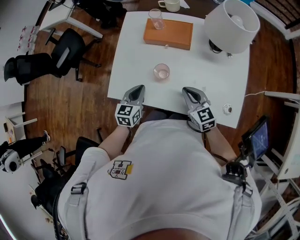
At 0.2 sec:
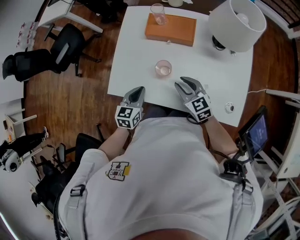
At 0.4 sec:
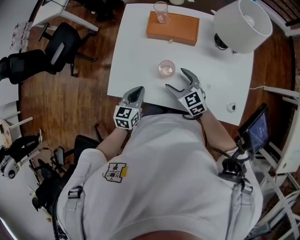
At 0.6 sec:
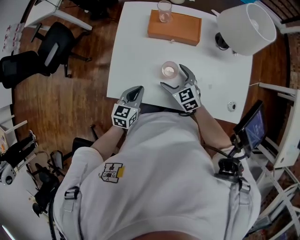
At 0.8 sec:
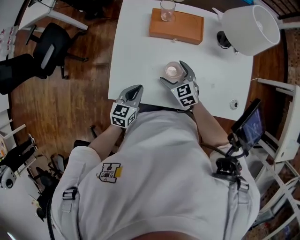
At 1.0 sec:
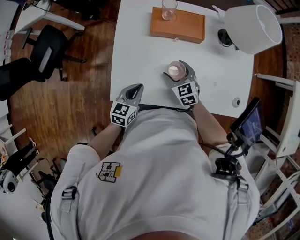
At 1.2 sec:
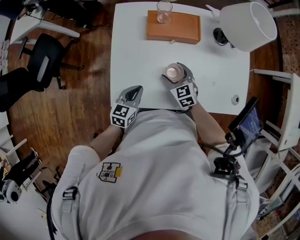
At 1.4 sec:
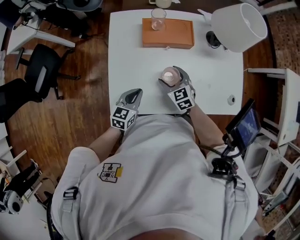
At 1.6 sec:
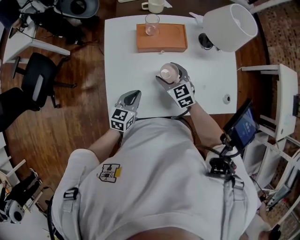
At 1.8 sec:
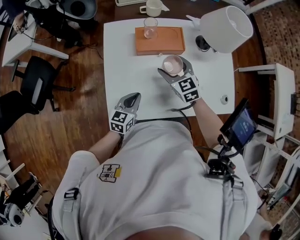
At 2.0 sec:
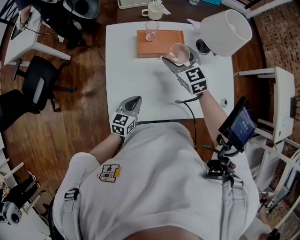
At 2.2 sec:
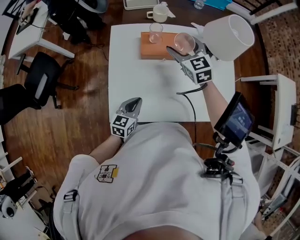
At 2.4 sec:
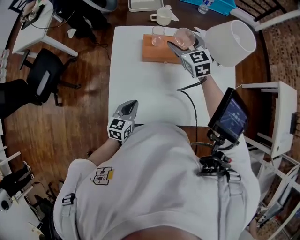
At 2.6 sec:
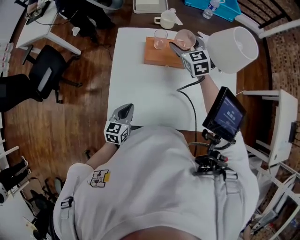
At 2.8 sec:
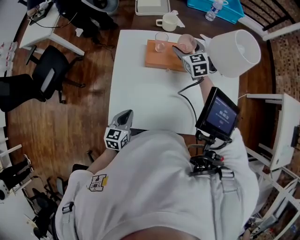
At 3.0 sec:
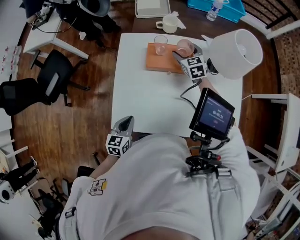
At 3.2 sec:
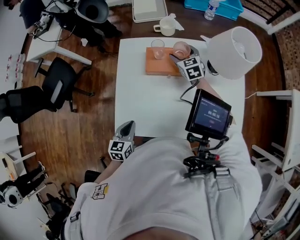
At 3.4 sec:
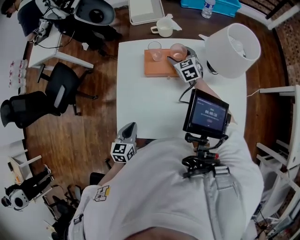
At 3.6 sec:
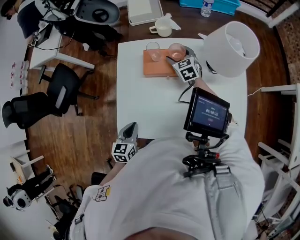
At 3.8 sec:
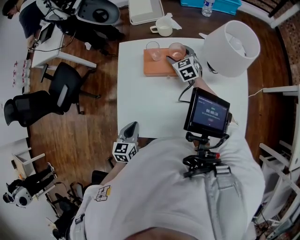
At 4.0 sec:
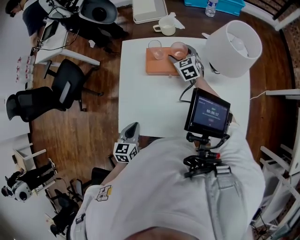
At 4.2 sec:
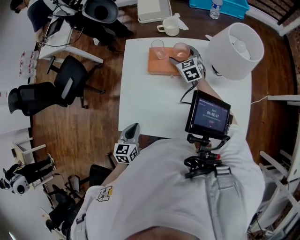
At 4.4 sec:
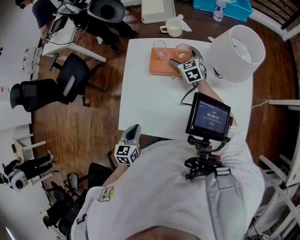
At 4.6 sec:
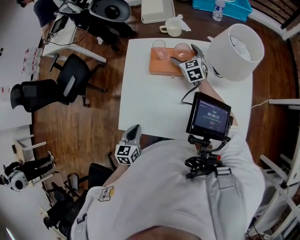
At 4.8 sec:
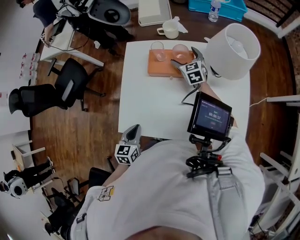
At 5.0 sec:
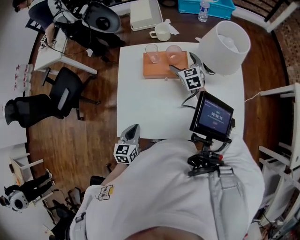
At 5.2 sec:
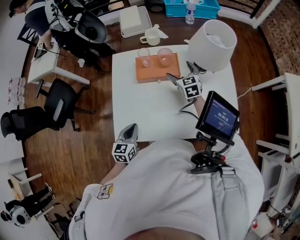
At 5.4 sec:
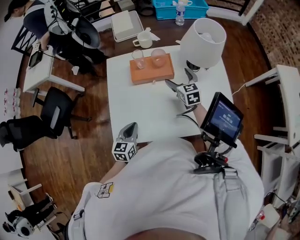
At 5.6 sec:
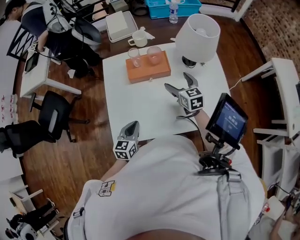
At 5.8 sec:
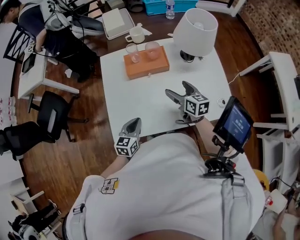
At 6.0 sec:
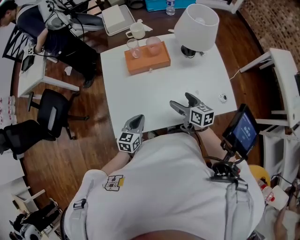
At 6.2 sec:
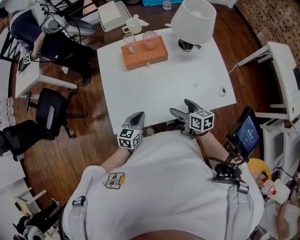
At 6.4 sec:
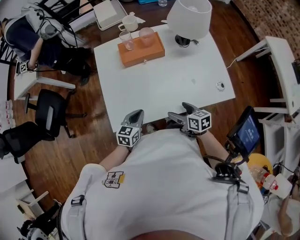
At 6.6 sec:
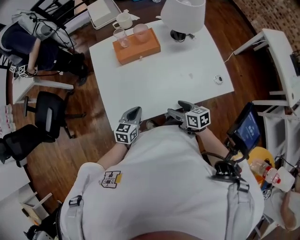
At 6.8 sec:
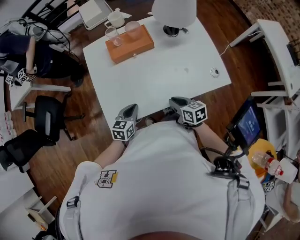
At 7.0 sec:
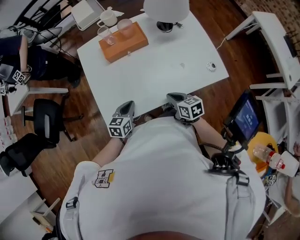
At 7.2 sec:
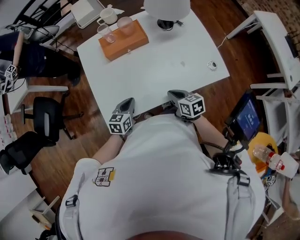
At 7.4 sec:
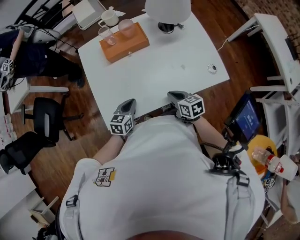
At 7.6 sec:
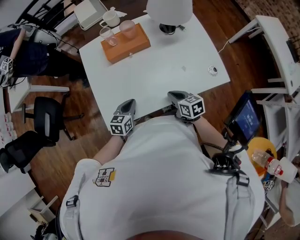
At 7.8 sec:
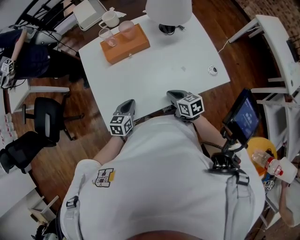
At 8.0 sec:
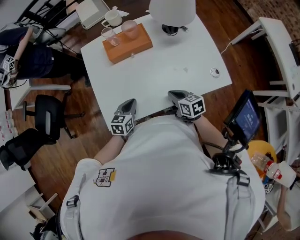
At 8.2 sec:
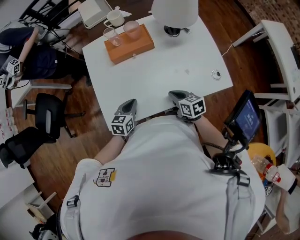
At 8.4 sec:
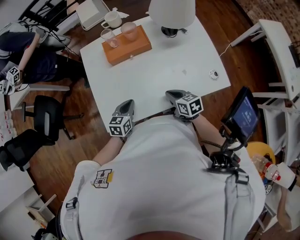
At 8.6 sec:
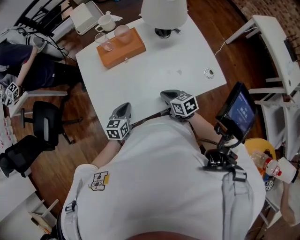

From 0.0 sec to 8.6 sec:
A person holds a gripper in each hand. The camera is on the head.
From 0.0 sec to 1.4 sec: The left gripper travels to the left by some 5 cm, and changes its angle by some 20 degrees; the right gripper heads to the left, forward and downward, covering about 15 cm, turns by approximately 20 degrees, and opens up.
From 1.4 sec to 2.8 sec: The right gripper goes some 25 cm forward and upward.
From 2.8 sec to 4.4 sec: The right gripper shifts about 5 cm downward.
From 4.4 sec to 5.8 sec: The right gripper travels backward by some 25 cm, and turns by some 40 degrees. The left gripper turns by about 30 degrees.
From 5.8 sec to 7.2 sec: The right gripper is displaced backward and downward by roughly 20 cm, and closes up.
From 7.2 sec to 8.6 sec: The grippers make only small movements.

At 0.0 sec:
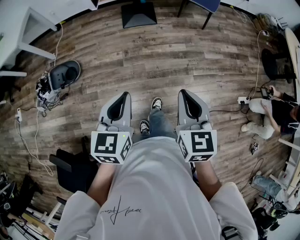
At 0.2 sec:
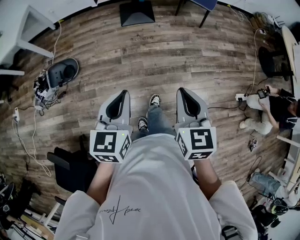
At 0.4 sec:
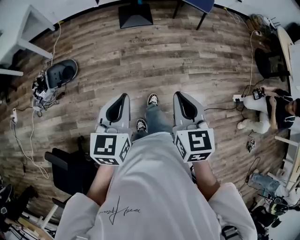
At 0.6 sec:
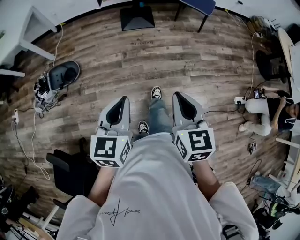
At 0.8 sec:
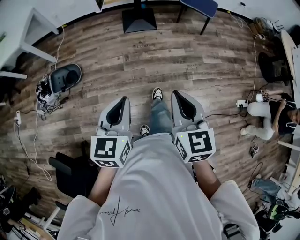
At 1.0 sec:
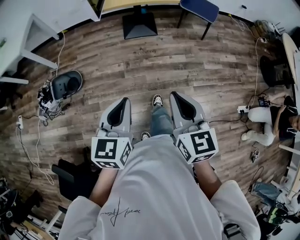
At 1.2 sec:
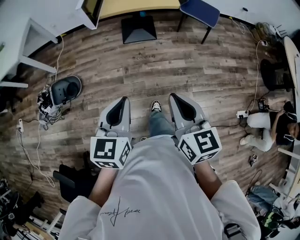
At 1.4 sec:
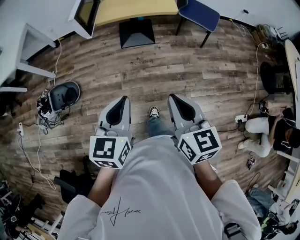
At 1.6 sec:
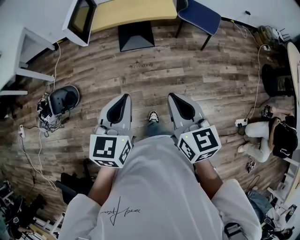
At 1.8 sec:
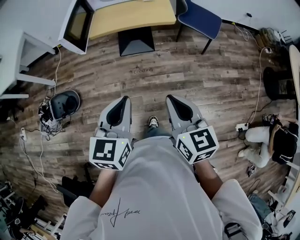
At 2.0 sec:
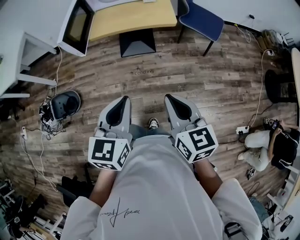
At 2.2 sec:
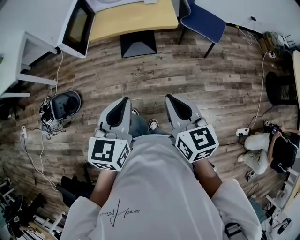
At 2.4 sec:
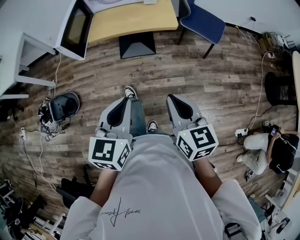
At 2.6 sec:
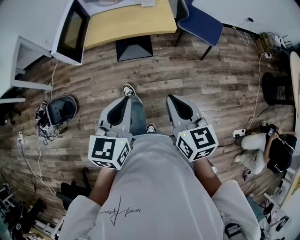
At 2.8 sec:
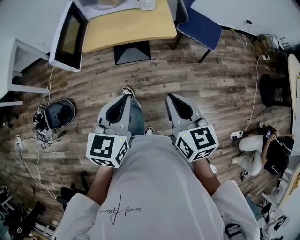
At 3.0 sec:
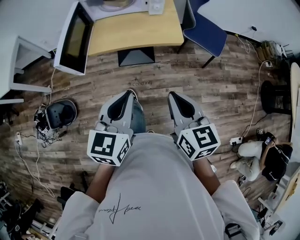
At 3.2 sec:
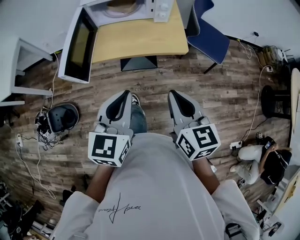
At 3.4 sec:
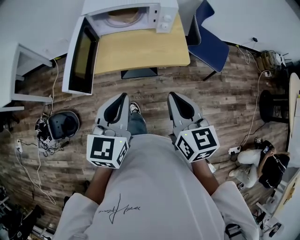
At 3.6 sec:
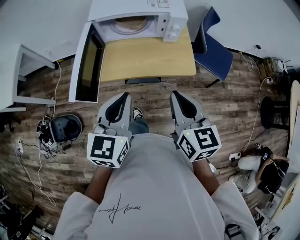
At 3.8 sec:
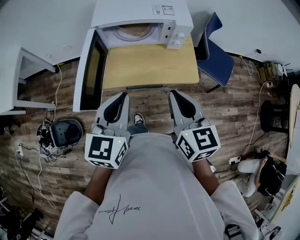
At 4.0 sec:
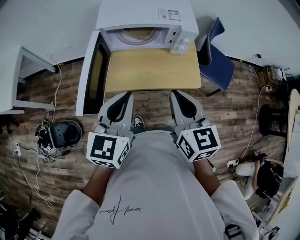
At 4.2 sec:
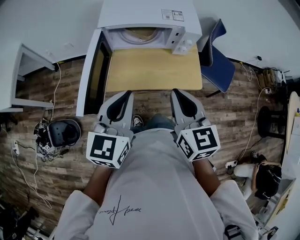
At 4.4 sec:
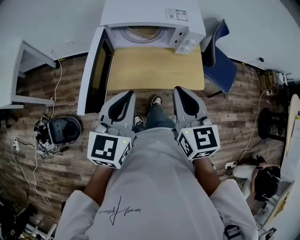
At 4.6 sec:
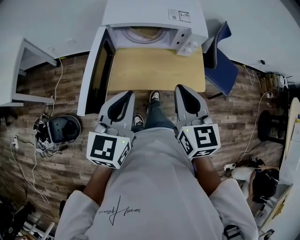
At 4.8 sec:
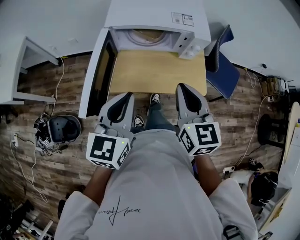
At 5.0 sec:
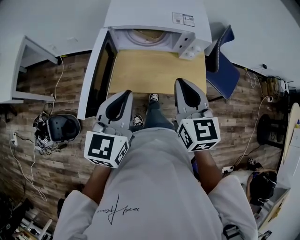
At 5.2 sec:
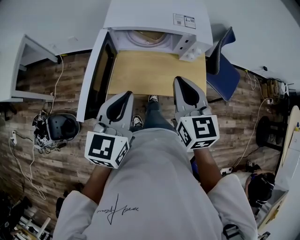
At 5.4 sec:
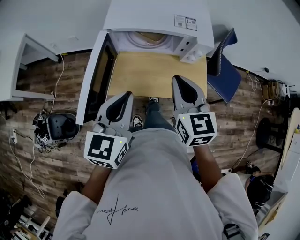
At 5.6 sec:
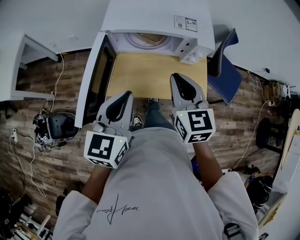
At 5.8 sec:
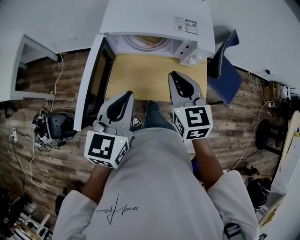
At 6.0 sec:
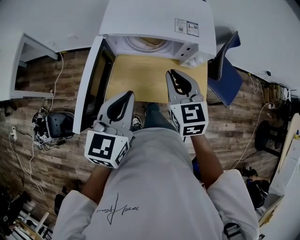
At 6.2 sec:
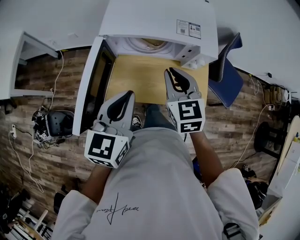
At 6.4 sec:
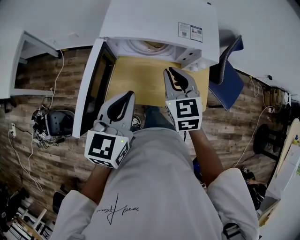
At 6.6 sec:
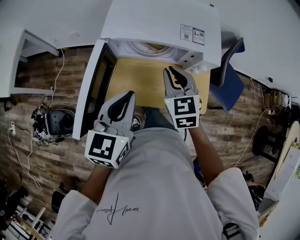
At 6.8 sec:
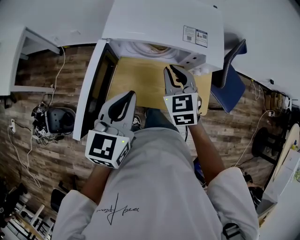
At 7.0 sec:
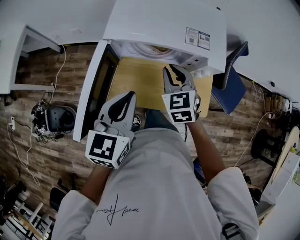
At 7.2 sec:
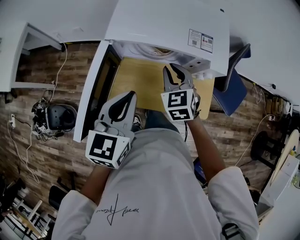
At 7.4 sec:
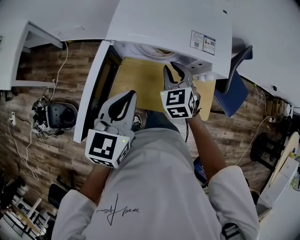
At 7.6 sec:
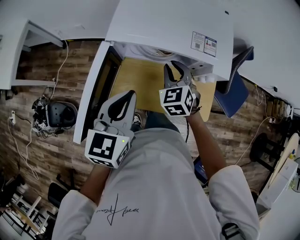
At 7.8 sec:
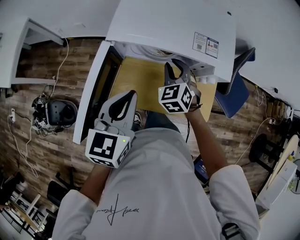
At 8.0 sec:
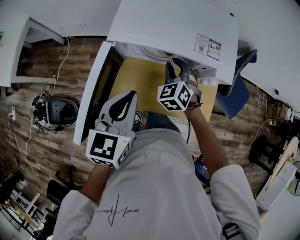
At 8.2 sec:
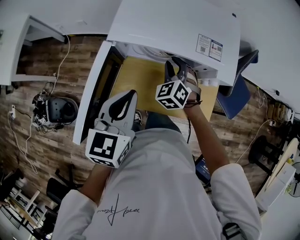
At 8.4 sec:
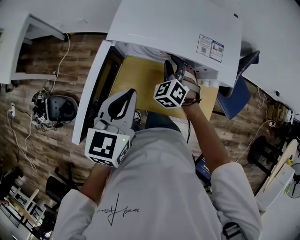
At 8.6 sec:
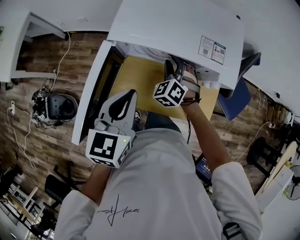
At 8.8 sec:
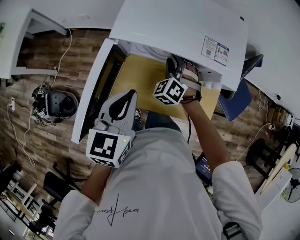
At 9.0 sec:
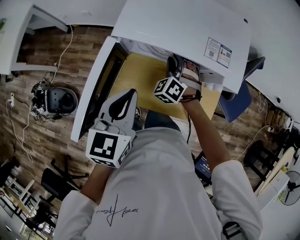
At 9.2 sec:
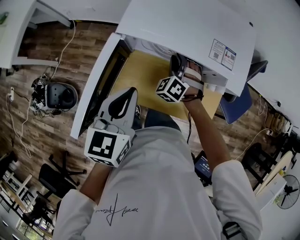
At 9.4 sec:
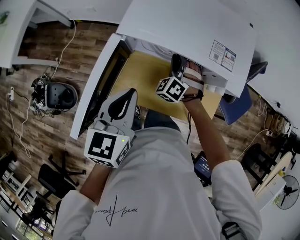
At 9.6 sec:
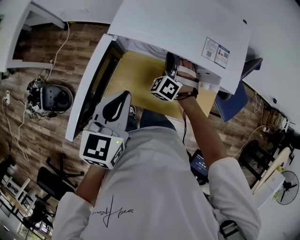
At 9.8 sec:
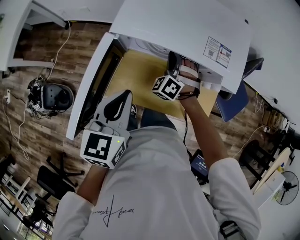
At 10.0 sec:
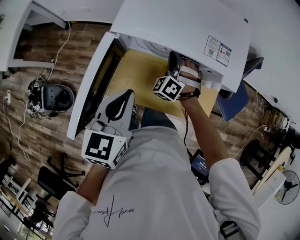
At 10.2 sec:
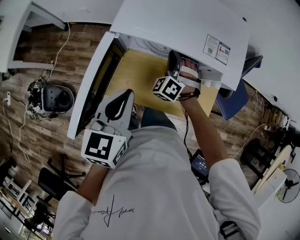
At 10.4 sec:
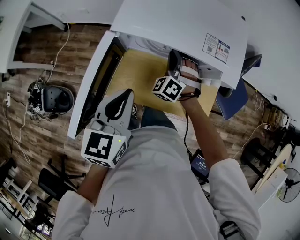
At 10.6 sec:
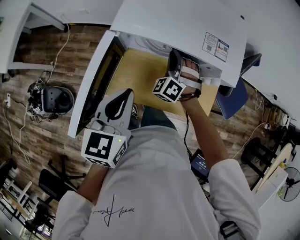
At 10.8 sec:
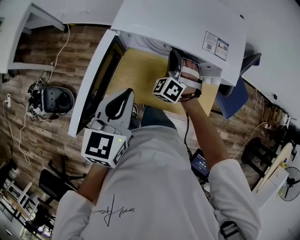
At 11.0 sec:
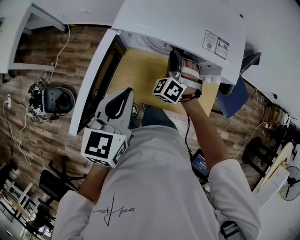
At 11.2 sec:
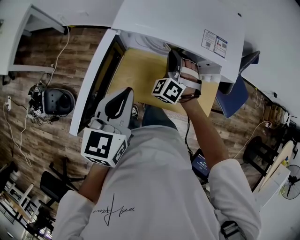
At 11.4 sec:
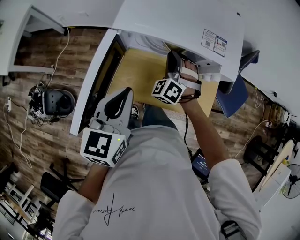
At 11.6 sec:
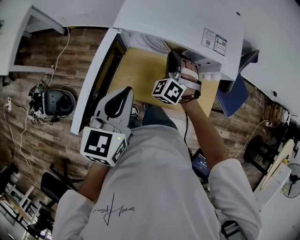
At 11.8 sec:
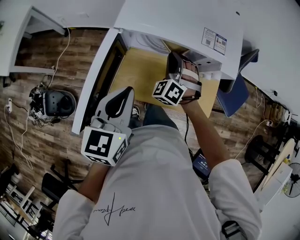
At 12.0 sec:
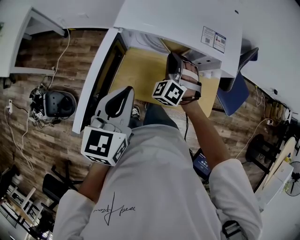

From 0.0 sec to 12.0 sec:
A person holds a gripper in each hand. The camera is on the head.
From 0.0 sec to 1.6 sec: Both grippers travel together forward, some 25 cm.
From 1.6 sec to 3.0 sec: The grippers both shift forward by about 20 cm.
From 3.0 sec to 4.4 sec: Both grippers travel together forward and to the left, some 25 cm.
From 4.4 sec to 6.0 sec: The right gripper goes roughly 15 cm forward; the left gripper moves forward, some 10 cm.
From 6.0 sec to 7.6 sec: The right gripper goes roughly 15 cm forward and downward, and swivels approximately 30 degrees; the left gripper goes roughly 5 cm forward.
From 7.6 sec to 9.0 sec: The right gripper shifts some 5 cm downward, and turns by approximately 30 degrees.
From 9.0 sec to 10.4 sec: The grippers move only a little.
From 10.4 sec to 12.0 sec: The right gripper ends up about 5 cm from where it was.

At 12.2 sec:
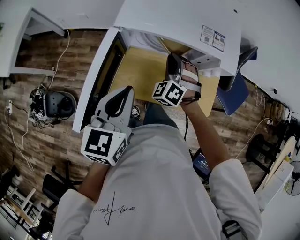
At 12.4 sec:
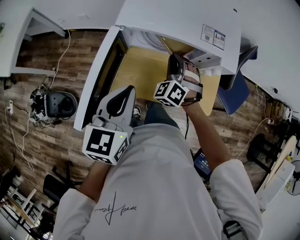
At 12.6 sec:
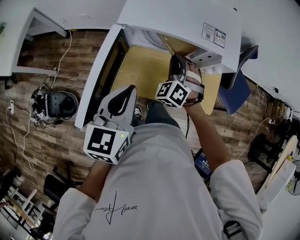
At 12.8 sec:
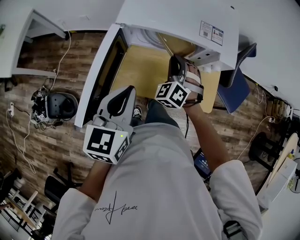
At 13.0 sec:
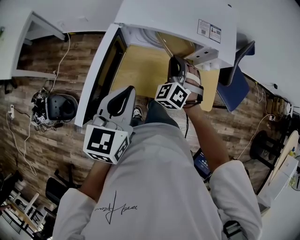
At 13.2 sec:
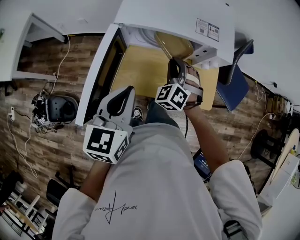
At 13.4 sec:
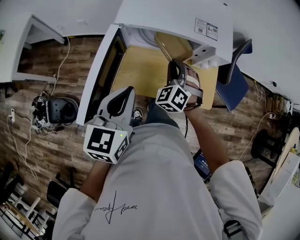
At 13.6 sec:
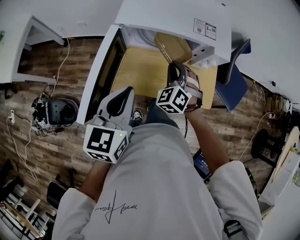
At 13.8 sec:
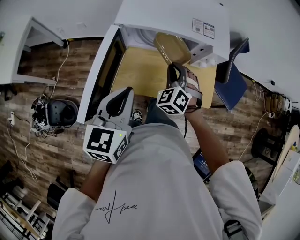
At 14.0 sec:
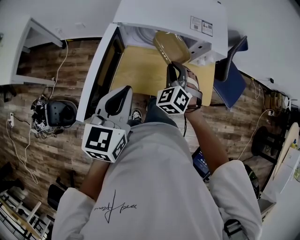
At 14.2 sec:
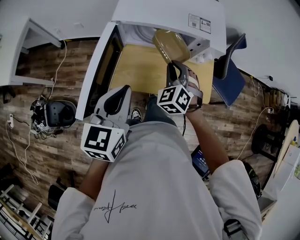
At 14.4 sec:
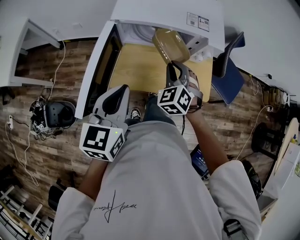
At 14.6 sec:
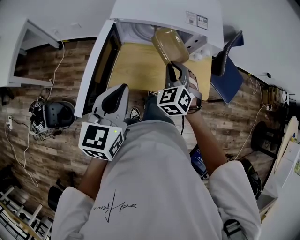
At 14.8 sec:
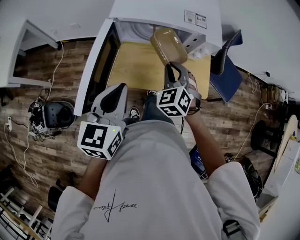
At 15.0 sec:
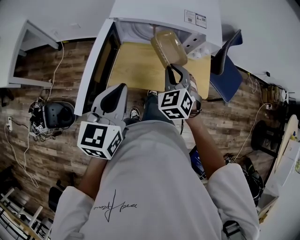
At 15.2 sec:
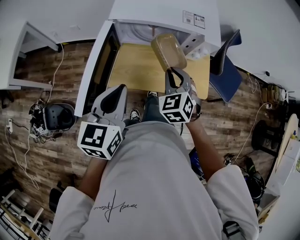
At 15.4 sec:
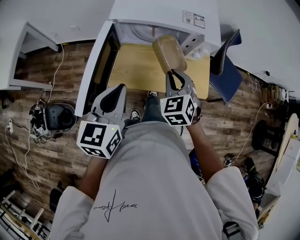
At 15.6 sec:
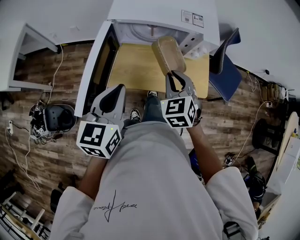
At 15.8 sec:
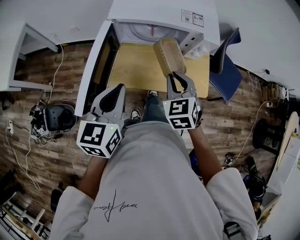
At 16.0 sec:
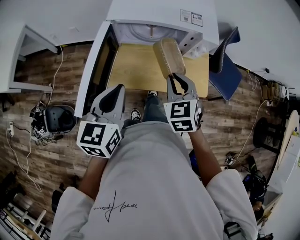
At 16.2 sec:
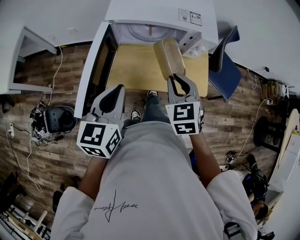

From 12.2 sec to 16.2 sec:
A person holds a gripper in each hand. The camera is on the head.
From 12.2 sec to 13.6 sec: The right gripper goes approximately 5 cm backward.
From 13.6 sec to 14.8 sec: The right gripper travels backward by about 5 cm.
From 14.8 sec to 16.2 sec: The right gripper moves backward, some 5 cm, and swivels some 20 degrees.
